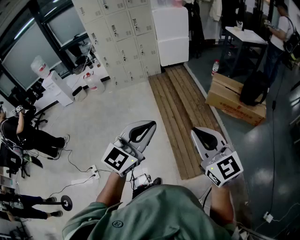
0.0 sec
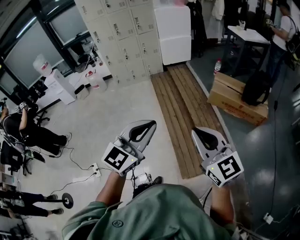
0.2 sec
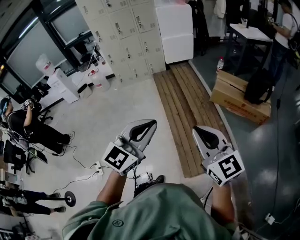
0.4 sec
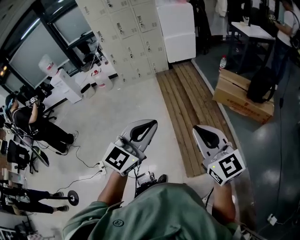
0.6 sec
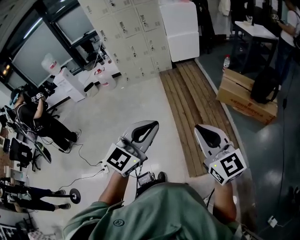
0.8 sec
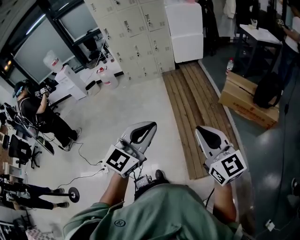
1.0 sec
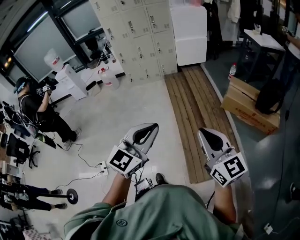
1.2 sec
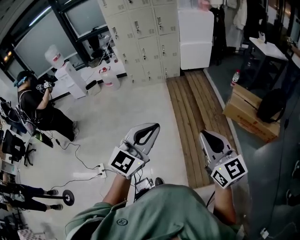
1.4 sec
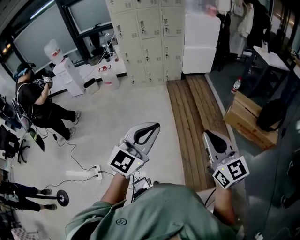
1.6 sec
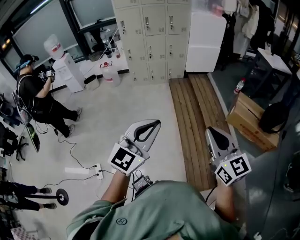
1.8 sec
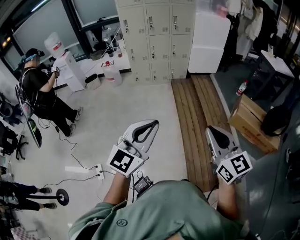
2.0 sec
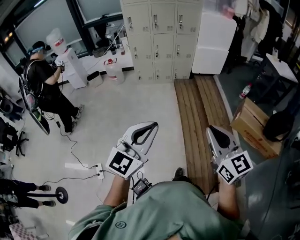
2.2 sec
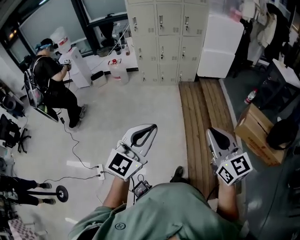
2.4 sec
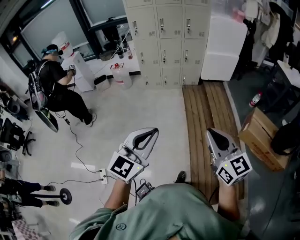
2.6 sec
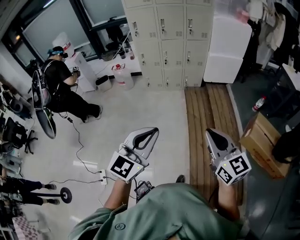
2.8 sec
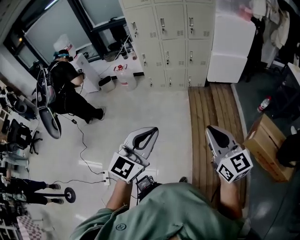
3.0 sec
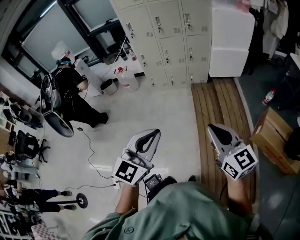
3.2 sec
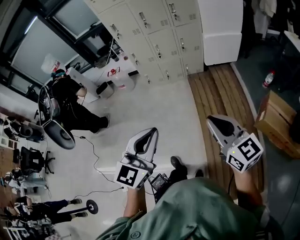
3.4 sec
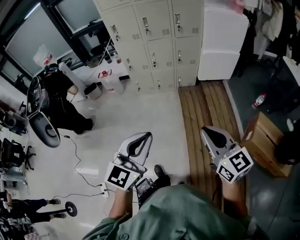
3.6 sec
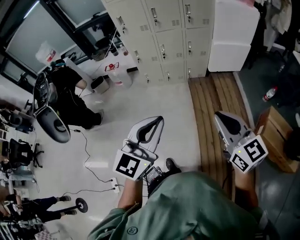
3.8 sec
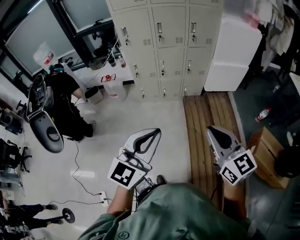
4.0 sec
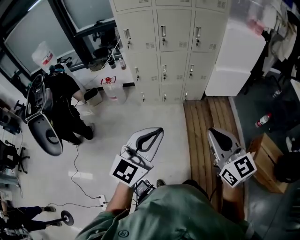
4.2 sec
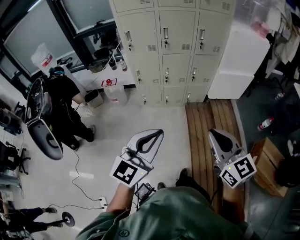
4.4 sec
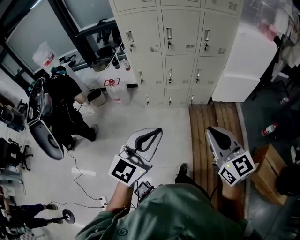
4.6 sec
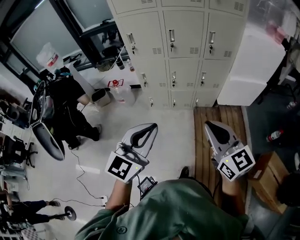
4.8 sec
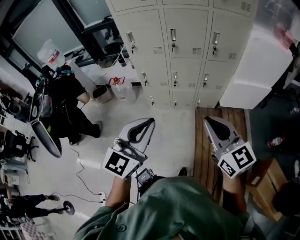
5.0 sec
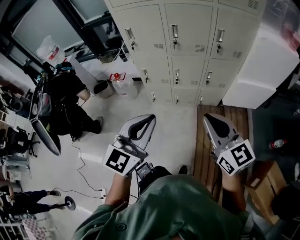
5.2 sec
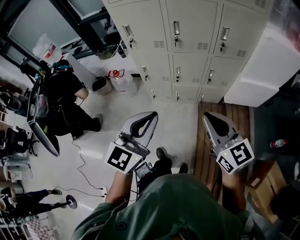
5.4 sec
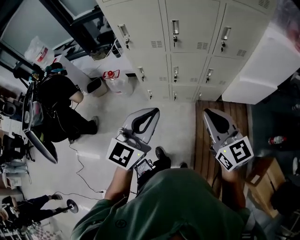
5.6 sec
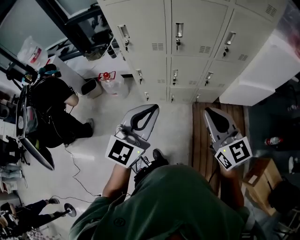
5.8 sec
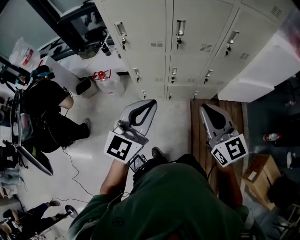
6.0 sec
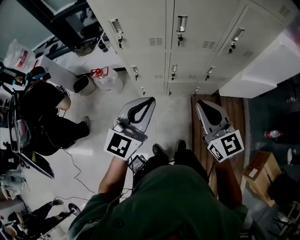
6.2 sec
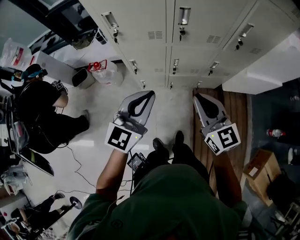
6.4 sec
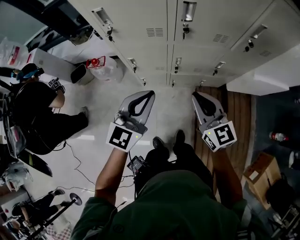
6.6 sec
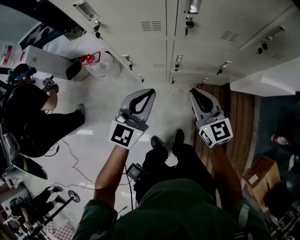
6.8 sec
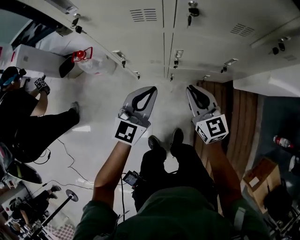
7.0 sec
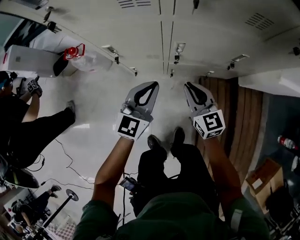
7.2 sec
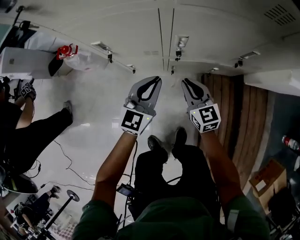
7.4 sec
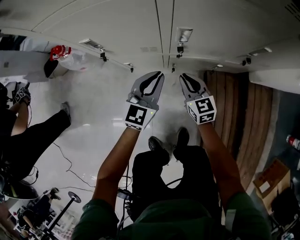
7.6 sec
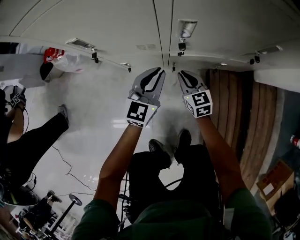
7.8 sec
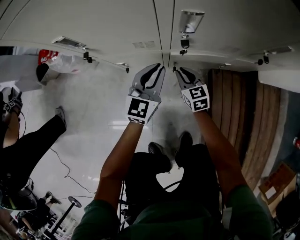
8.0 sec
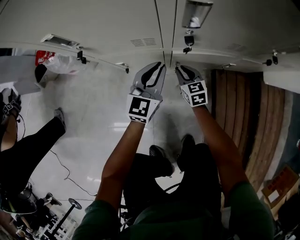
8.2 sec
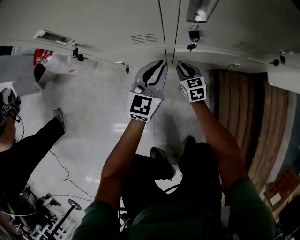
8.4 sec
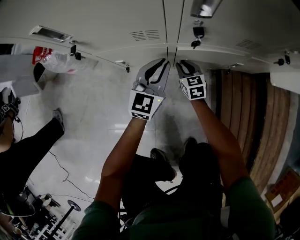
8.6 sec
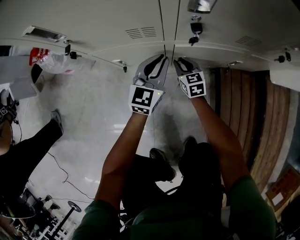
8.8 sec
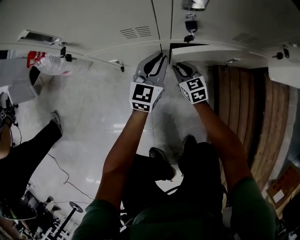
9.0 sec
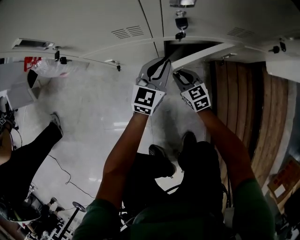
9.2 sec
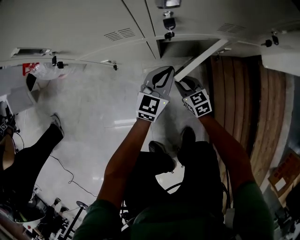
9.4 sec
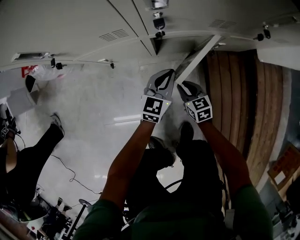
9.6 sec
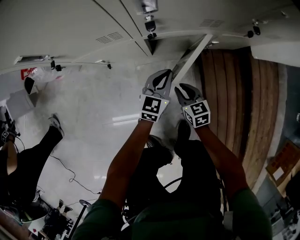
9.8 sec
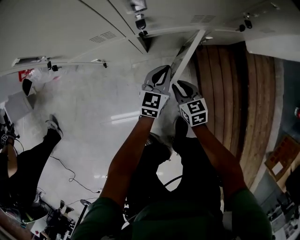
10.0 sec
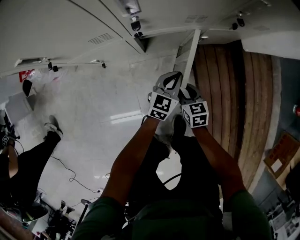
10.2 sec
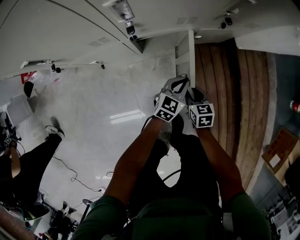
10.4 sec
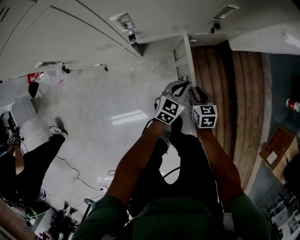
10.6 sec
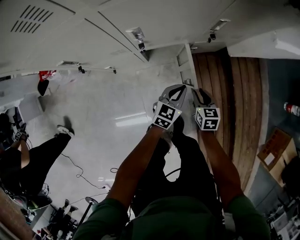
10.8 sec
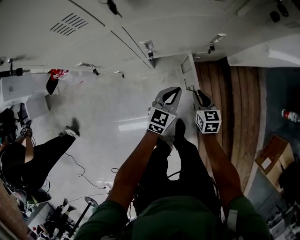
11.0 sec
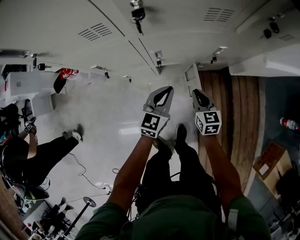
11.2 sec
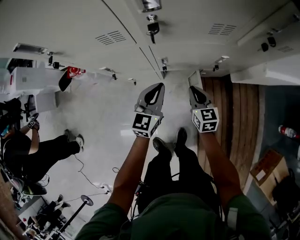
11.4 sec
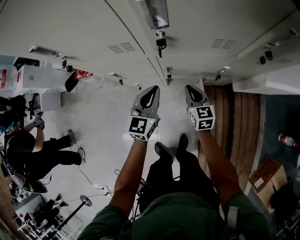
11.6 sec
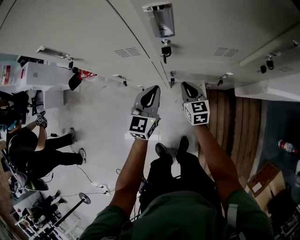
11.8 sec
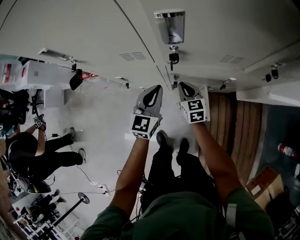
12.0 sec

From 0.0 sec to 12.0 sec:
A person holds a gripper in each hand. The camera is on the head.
From 0.0 sec to 1.6 sec: Both grippers travel together to the left and forward, roughly 20 cm.
From 1.6 sec to 3.0 sec: Both grippers travel together forward, some 30 cm.
From 3.0 sec to 4.4 sec: Both grippers move forward, some 30 cm.
From 4.4 sec to 6.0 sec: The two grippers go roughly 40 cm forward.
From 6.0 sec to 7.6 sec: The grippers both shift downward and forward by approximately 70 cm.
From 7.6 sec to 9.0 sec: The two grippers go roughly 25 cm downward.
From 9.0 sec to 10.4 sec: The left gripper travels to the right and backward by approximately 30 cm, and changes its angle by about 30 degrees; the right gripper is displaced to the right, backward and upward by roughly 30 cm, and turns by about 30 degrees.
From 10.4 sec to 12.0 sec: The left gripper moves up and down over about 25 cm, changing direction 2 times, and rotates some 30 degrees. Meanwhile the right gripper swings up and down, approximately 25 cm each way, with 2 reversals, turns by some 30 degrees, and closes its fingers.

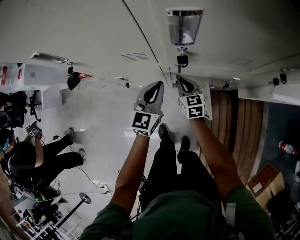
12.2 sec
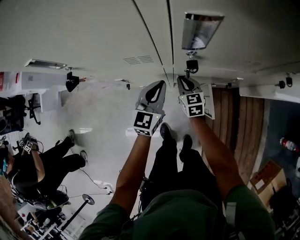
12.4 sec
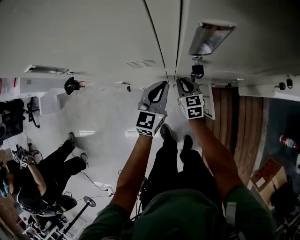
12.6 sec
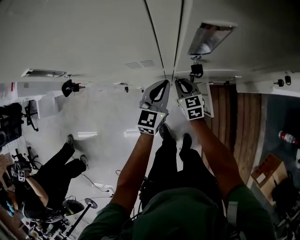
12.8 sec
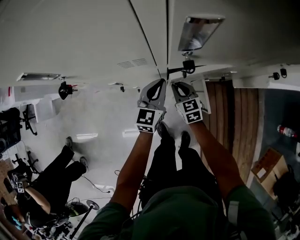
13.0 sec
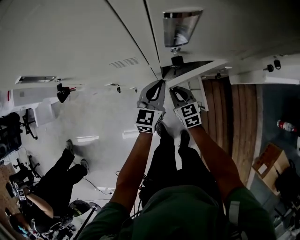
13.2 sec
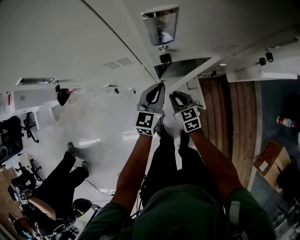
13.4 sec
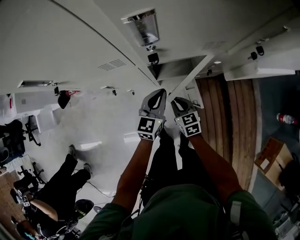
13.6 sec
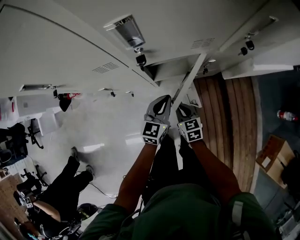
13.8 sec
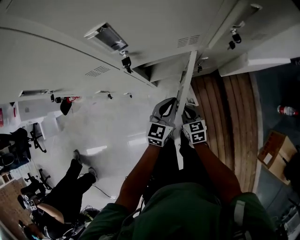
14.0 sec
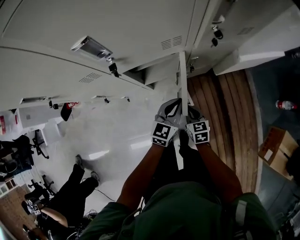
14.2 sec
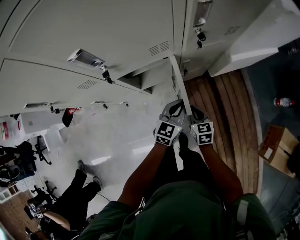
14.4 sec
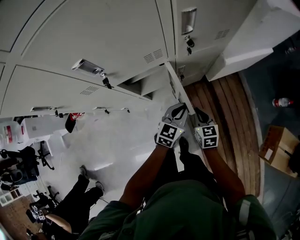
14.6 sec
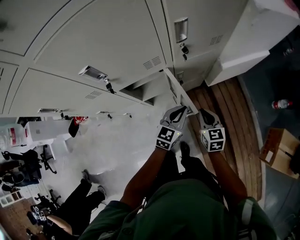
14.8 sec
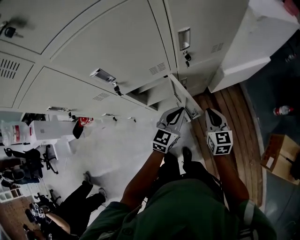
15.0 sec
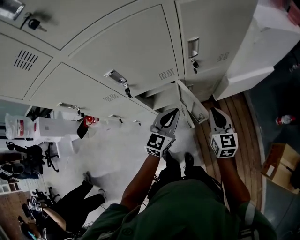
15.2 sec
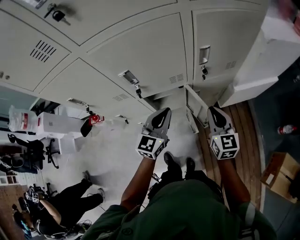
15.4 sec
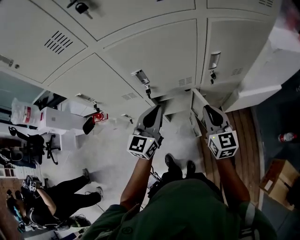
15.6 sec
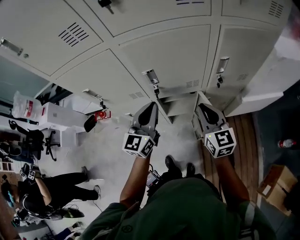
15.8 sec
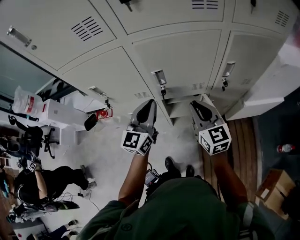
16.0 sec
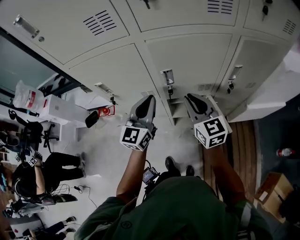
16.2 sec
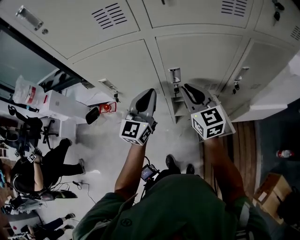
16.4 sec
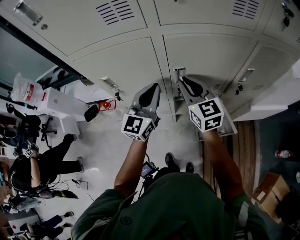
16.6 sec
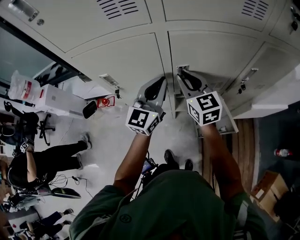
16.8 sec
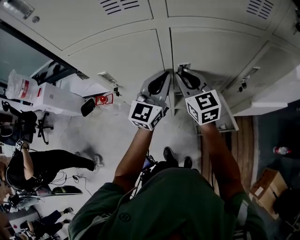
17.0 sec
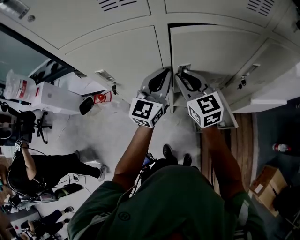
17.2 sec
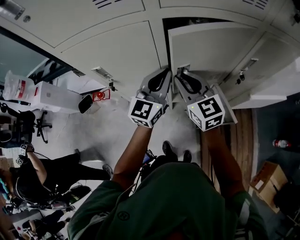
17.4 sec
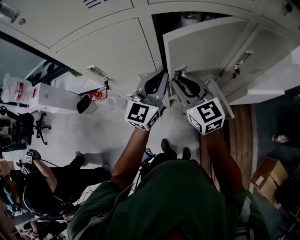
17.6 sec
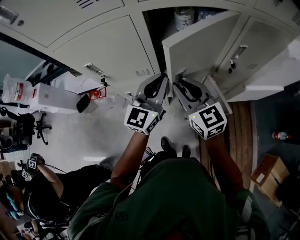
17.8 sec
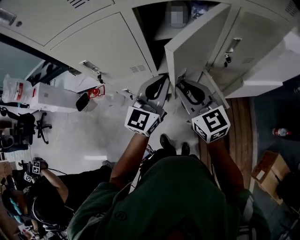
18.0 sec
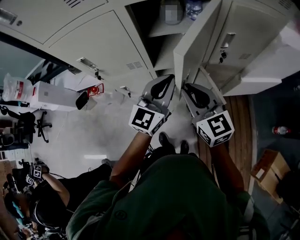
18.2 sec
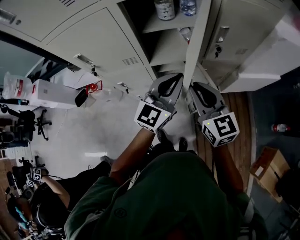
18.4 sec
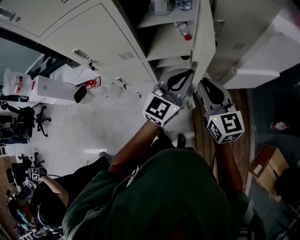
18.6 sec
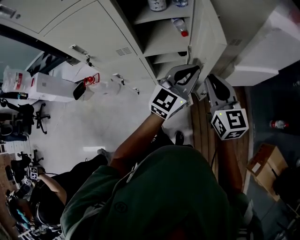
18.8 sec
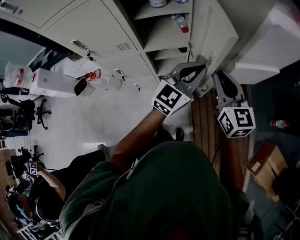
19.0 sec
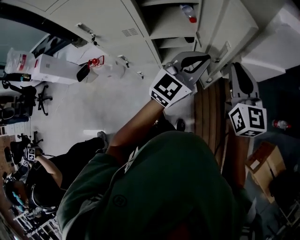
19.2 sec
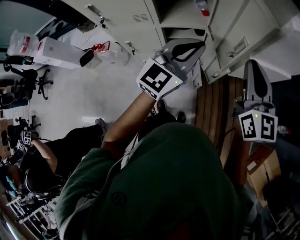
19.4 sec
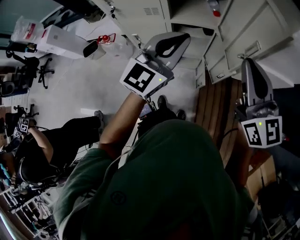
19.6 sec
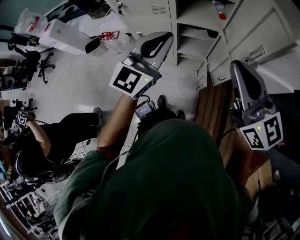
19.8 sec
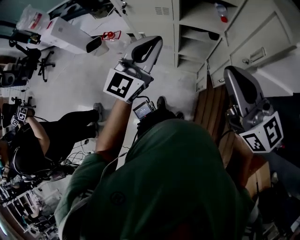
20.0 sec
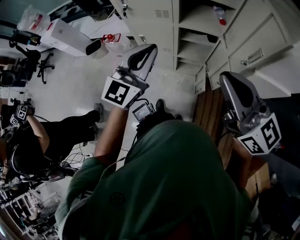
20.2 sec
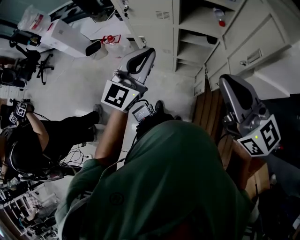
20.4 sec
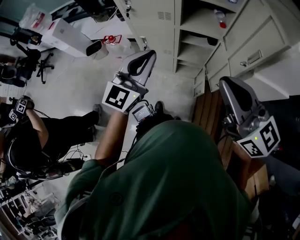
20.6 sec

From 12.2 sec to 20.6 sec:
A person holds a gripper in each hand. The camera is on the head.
From 12.2 sec to 13.6 sec: The right gripper travels backward by roughly 10 cm. Meanwhile the left gripper shifts some 5 cm to the right.
From 13.6 sec to 15.0 sec: The grippers both shift to the right and upward by some 30 cm. The right gripper turns by some 30 degrees.
From 15.0 sec to 16.4 sec: The left gripper changes place by about 40 cm, and turns by approximately 30 degrees, while the right gripper ends up approximately 40 cm from where it was, and turns by about 40 degrees.
From 16.4 sec to 17.8 sec: The left gripper moves to the right, some 5 cm. The right gripper is displaced backward by approximately 5 cm.
From 17.8 sec to 19.2 sec: The right gripper goes roughly 30 cm to the right, and changes its angle by about 20 degrees; the left gripper shifts approximately 25 cm to the right and backward, and rotates about 20 degrees.
From 19.2 sec to 20.6 sec: The left gripper ends up approximately 30 cm from where it was, and turns by some 30 degrees. The right gripper ends up roughly 20 cm from where it was, and changes its angle by some 50 degrees.

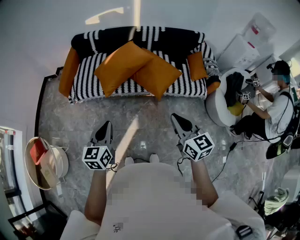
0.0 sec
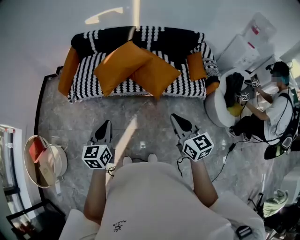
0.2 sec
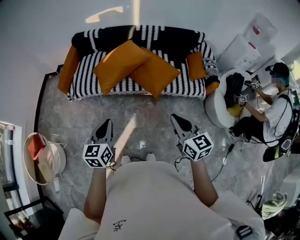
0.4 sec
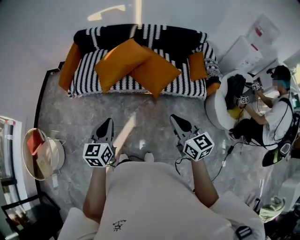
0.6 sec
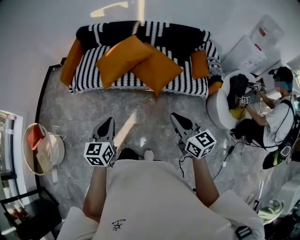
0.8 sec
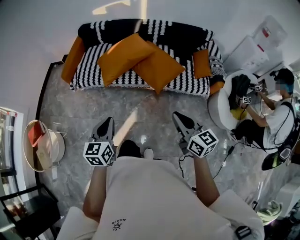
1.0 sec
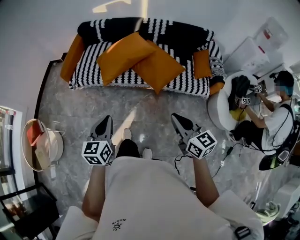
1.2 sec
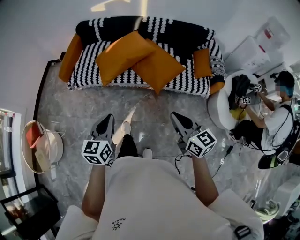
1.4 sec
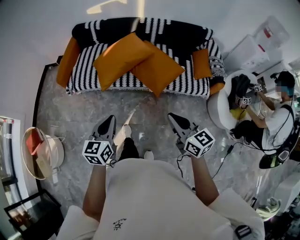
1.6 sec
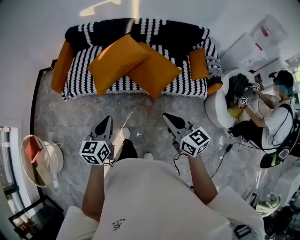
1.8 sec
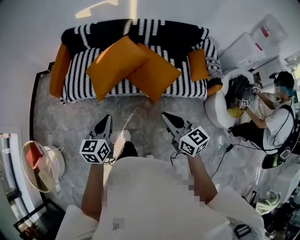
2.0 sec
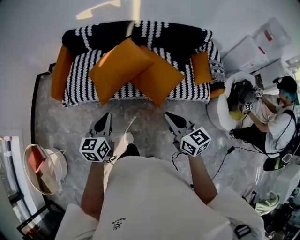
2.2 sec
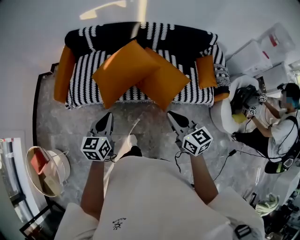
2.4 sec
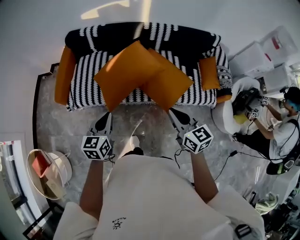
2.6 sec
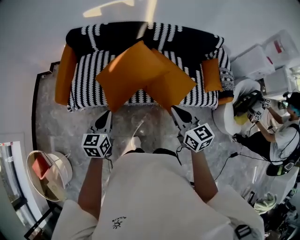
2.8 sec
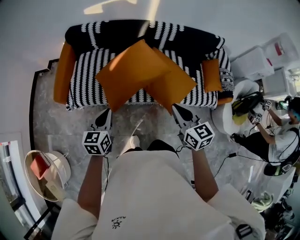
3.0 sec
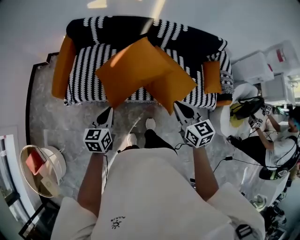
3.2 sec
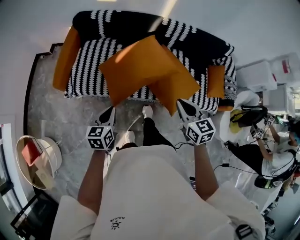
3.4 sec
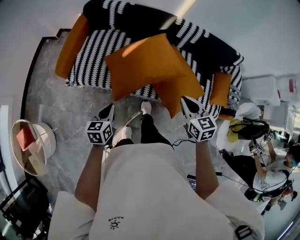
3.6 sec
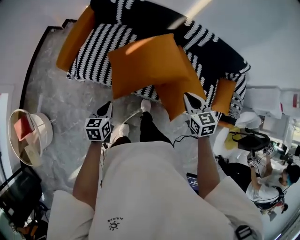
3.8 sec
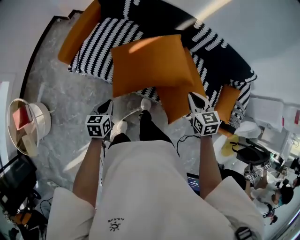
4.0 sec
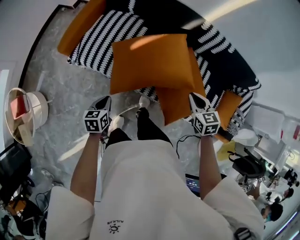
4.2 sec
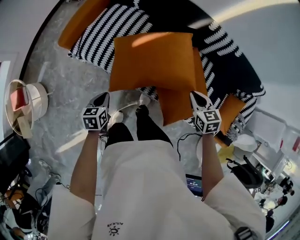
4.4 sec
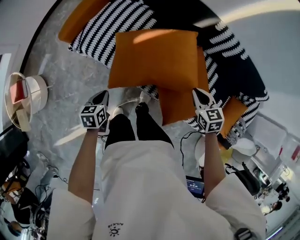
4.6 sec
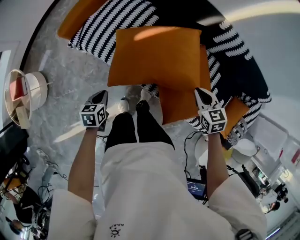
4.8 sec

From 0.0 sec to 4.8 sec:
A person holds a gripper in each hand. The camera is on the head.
From 0.0 sec to 1.6 sec: The left gripper moves to the right, approximately 5 cm. Meanwhile the right gripper ends up roughly 5 cm from where it was.
From 1.6 sec to 3.2 sec: The right gripper travels forward by about 30 cm, while the left gripper travels forward and to the left by approximately 30 cm.
From 3.2 sec to 4.8 sec: The right gripper moves about 30 cm, and rotates approximately 40 degrees, while the left gripper moves downward, approximately 20 cm, and rotates roughly 40 degrees.
